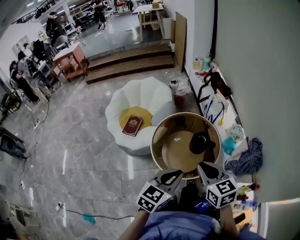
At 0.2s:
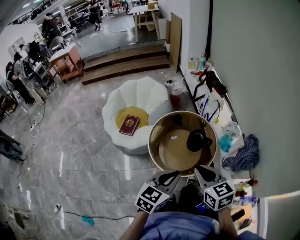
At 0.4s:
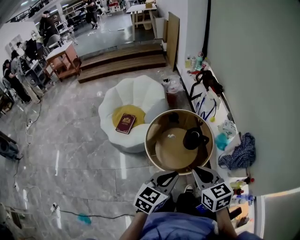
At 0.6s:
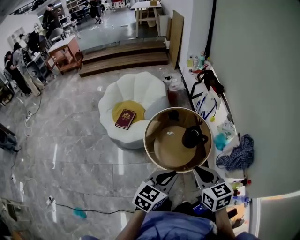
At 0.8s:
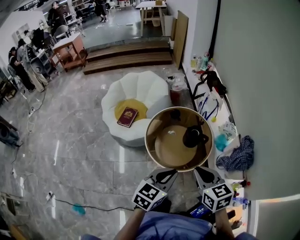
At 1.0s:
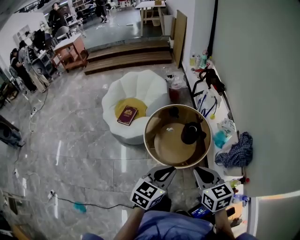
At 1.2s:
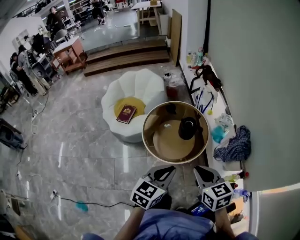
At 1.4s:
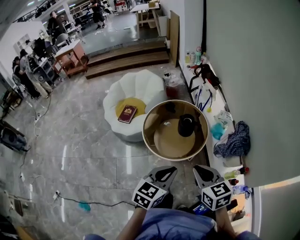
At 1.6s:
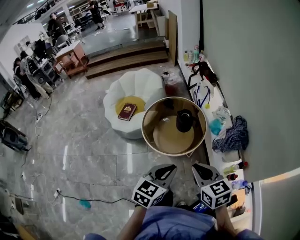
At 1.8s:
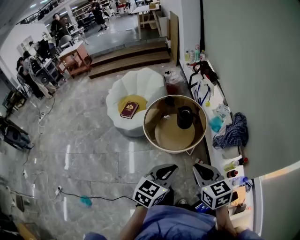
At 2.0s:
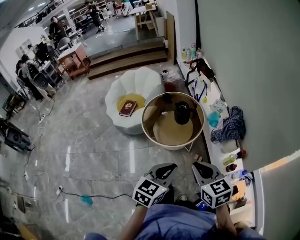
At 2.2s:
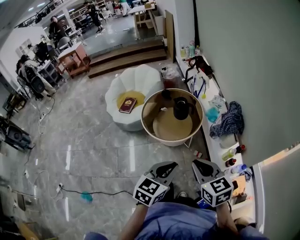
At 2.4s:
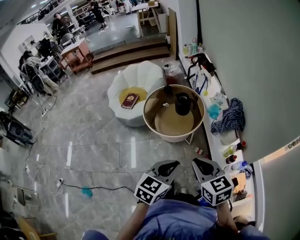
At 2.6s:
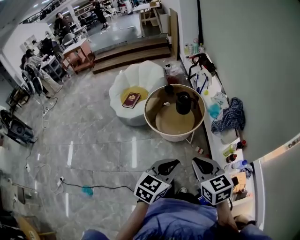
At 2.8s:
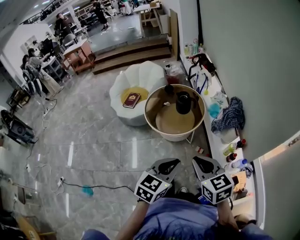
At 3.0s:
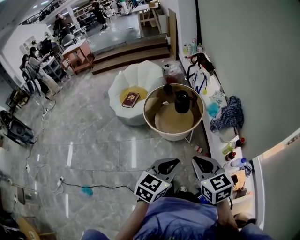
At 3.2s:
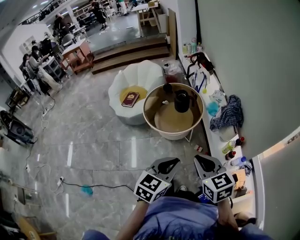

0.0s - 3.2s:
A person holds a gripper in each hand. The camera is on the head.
0.0s - 1.6s: Both grippers travel together backward and to the right, about 20 cm.
1.6s - 3.2s: Both grippers move backward, approximately 15 cm.

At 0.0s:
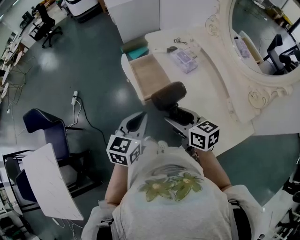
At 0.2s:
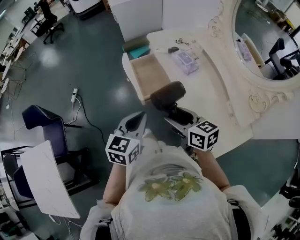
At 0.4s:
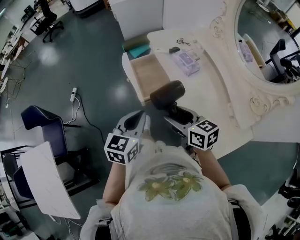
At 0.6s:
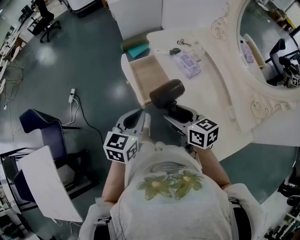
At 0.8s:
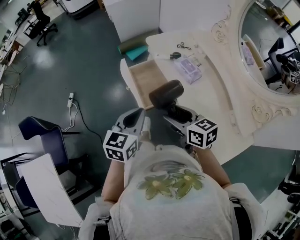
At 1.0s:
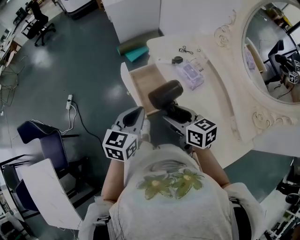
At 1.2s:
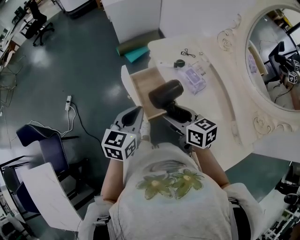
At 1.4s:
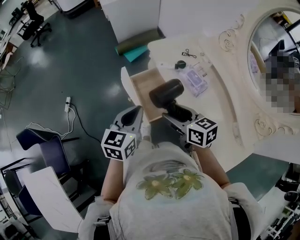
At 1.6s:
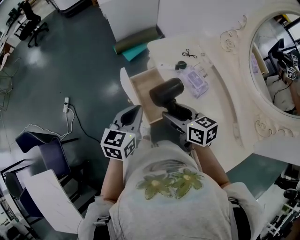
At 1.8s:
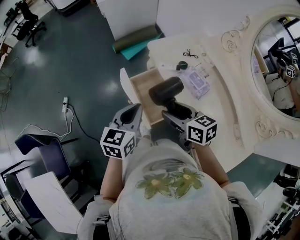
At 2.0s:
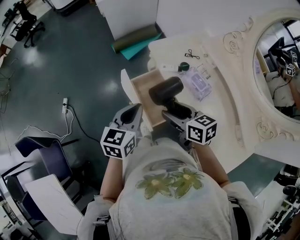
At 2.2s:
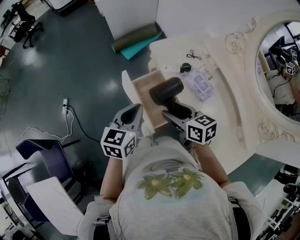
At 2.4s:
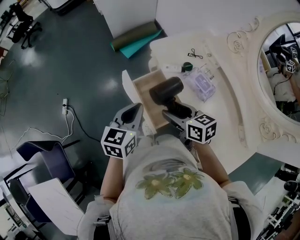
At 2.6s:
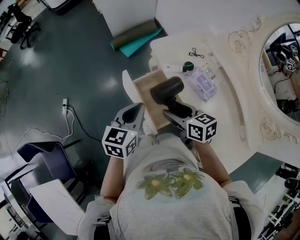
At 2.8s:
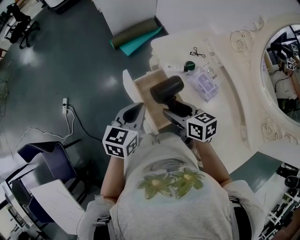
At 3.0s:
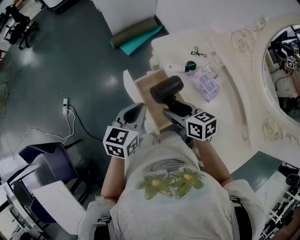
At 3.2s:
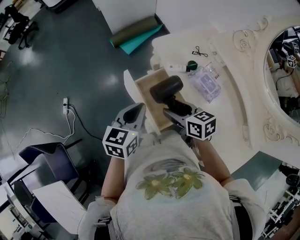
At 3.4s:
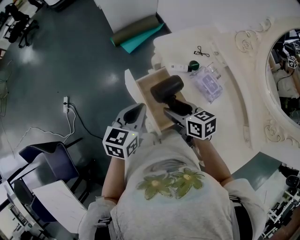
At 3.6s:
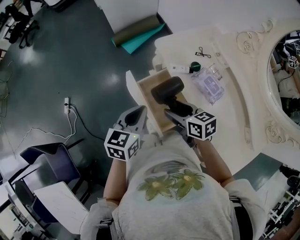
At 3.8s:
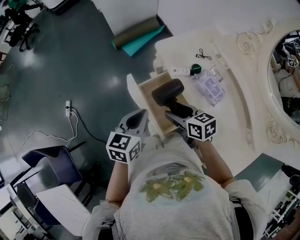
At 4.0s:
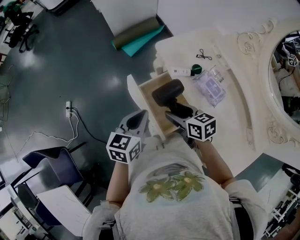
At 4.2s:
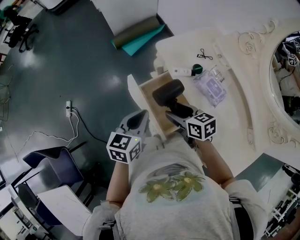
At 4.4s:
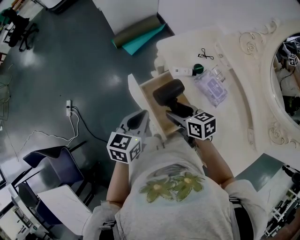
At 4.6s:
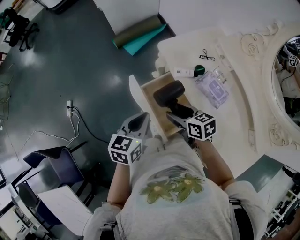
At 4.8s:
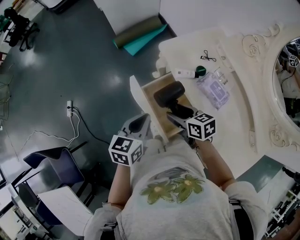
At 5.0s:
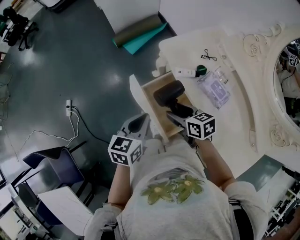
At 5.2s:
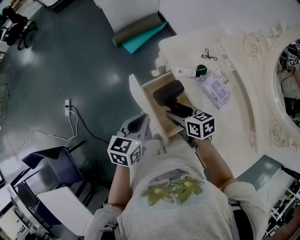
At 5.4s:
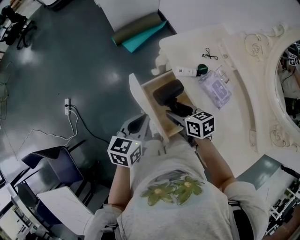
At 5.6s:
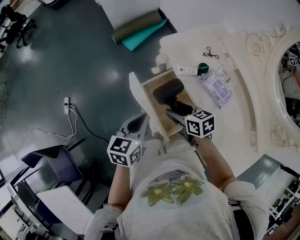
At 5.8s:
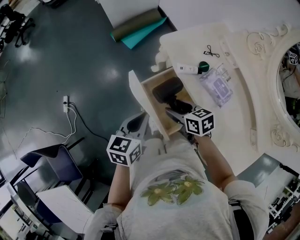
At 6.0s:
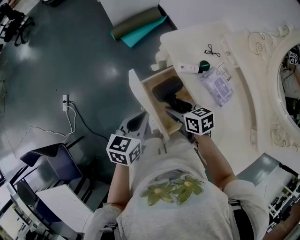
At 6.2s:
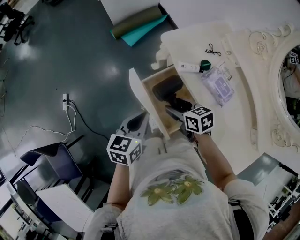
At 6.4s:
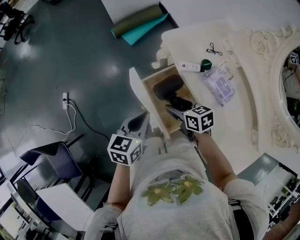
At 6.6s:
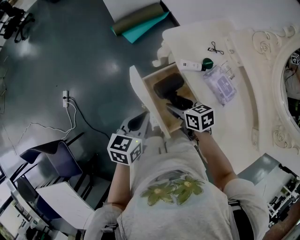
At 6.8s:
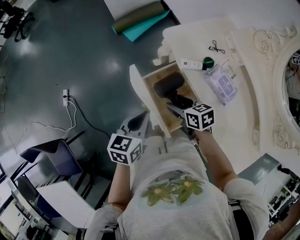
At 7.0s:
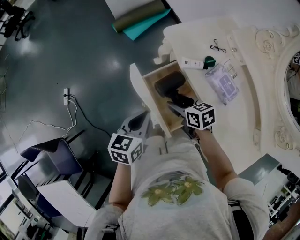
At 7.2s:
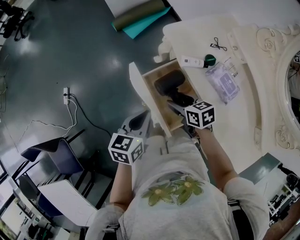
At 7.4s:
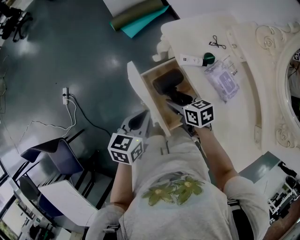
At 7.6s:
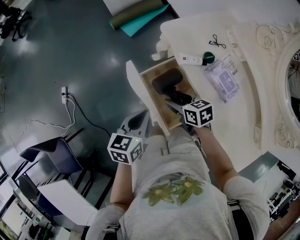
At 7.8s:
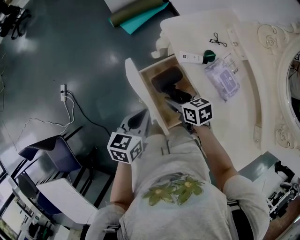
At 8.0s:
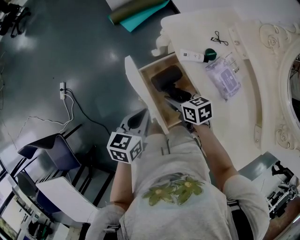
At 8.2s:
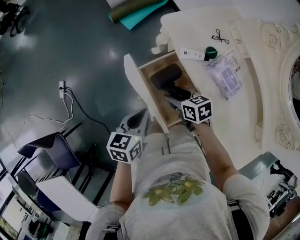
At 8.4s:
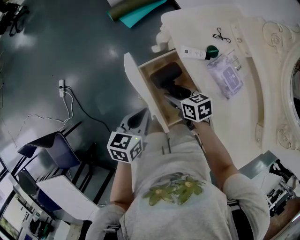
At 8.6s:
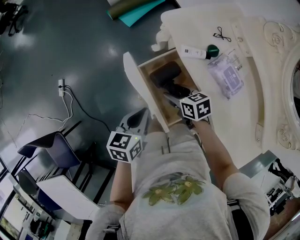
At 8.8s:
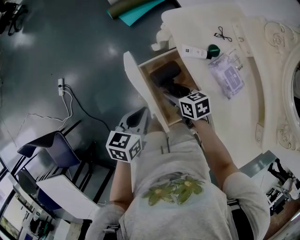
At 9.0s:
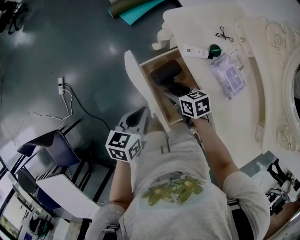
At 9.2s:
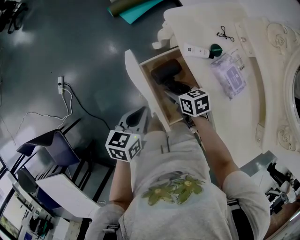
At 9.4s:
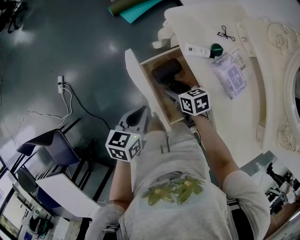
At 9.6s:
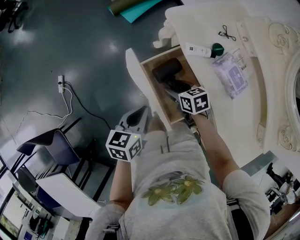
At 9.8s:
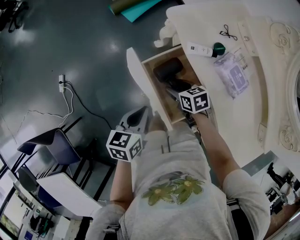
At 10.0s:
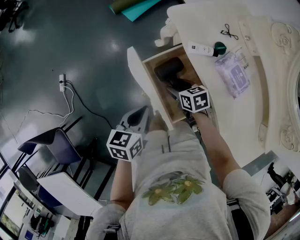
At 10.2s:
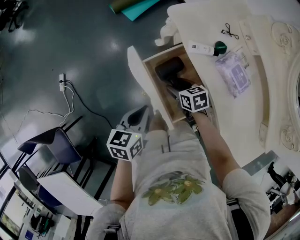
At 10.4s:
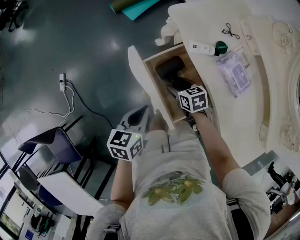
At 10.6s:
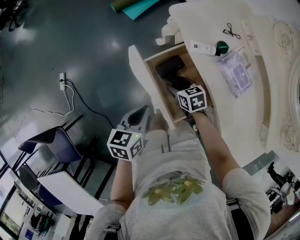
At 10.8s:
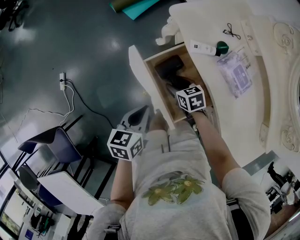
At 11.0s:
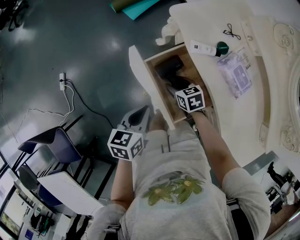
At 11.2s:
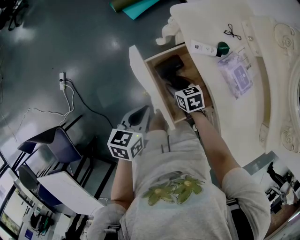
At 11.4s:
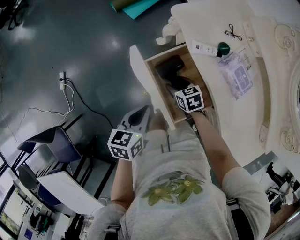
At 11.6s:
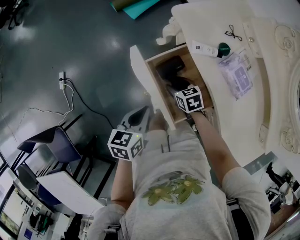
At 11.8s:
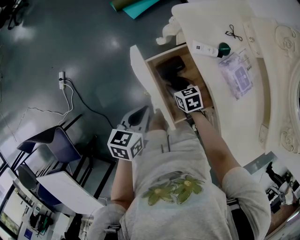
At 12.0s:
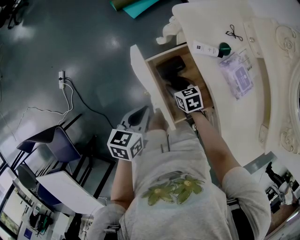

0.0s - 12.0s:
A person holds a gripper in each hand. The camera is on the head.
0.0s - 1.6s: Both grippers move forward, approximately 25 cm.
1.6s - 3.0s: The right gripper shifts about 10 cm forward and downward. The left gripper travels forward by about 10 cm.
3.0s - 4.4s: The right gripper ends up approximately 5 cm from where it was.
4.4s - 6.0s: The right gripper moves downward, approximately 5 cm.
6.0s - 7.6s: The grippers stay close to where they were, moving slightly.
7.6s - 9.0s: The right gripper shifts some 5 cm downward.
9.0s - 10.4s: The right gripper changes place by roughly 5 cm.
10.4s - 12.0s: The grippers move only a little.

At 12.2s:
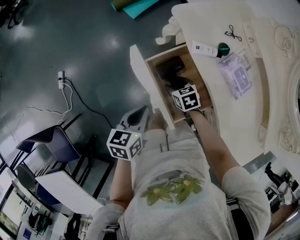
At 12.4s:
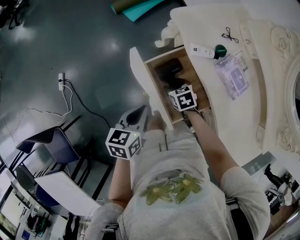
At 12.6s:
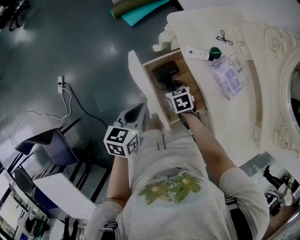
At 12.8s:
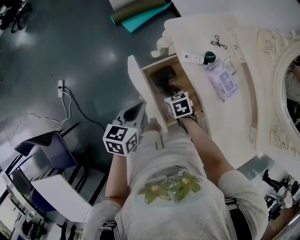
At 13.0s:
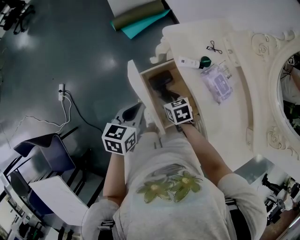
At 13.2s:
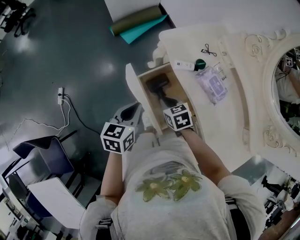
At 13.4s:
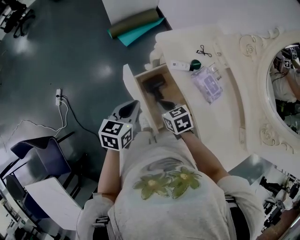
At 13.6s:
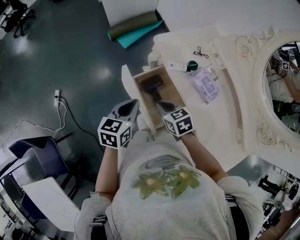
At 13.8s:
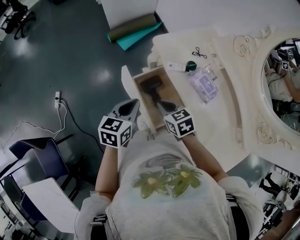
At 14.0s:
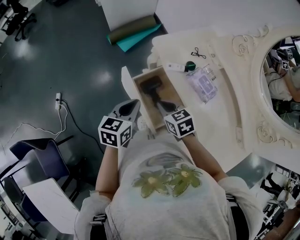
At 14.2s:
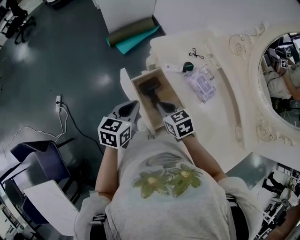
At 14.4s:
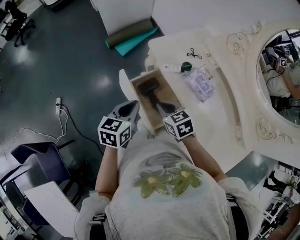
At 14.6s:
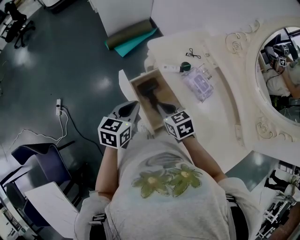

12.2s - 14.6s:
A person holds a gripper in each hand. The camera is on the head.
12.2s - 13.4s: The right gripper shifts approximately 15 cm upward, and closes, while the left gripper goes about 10 cm upward.
13.4s - 14.6s: The right gripper heads upward, covering about 5 cm.

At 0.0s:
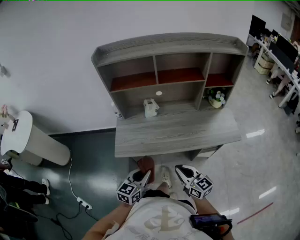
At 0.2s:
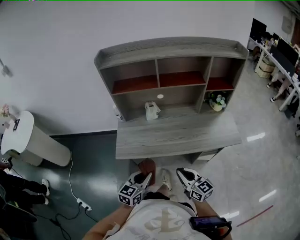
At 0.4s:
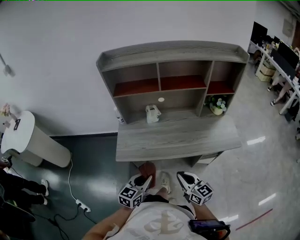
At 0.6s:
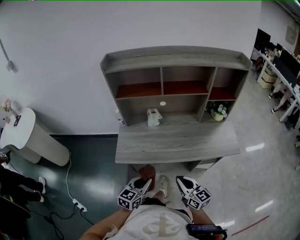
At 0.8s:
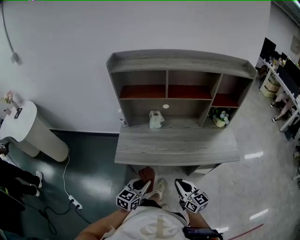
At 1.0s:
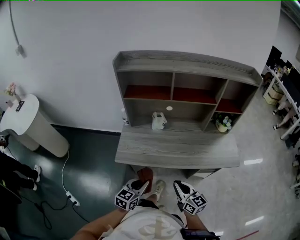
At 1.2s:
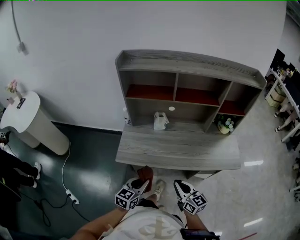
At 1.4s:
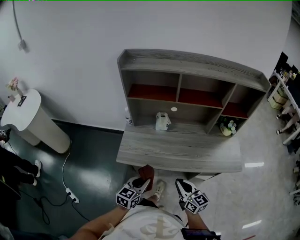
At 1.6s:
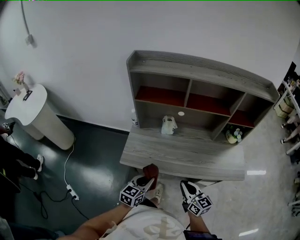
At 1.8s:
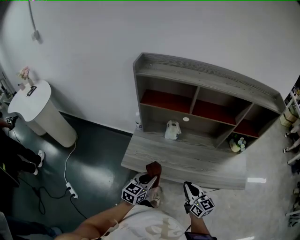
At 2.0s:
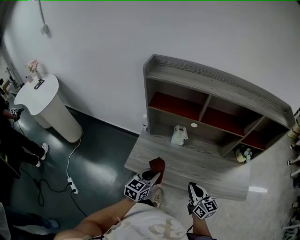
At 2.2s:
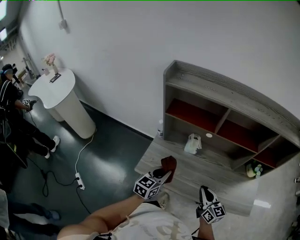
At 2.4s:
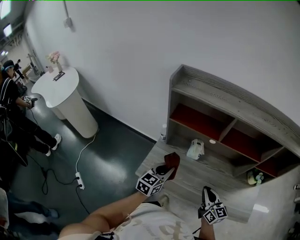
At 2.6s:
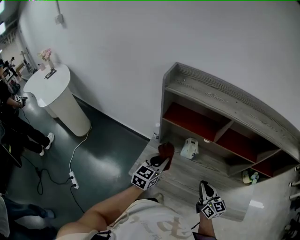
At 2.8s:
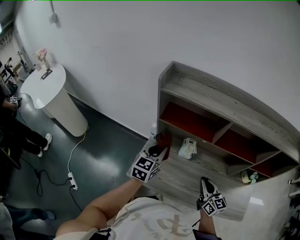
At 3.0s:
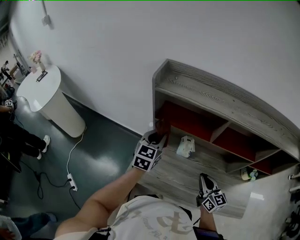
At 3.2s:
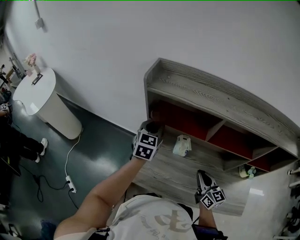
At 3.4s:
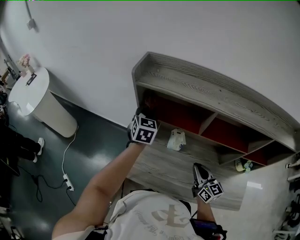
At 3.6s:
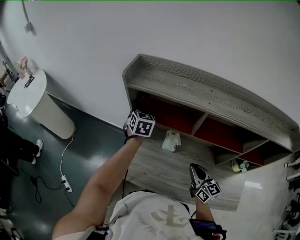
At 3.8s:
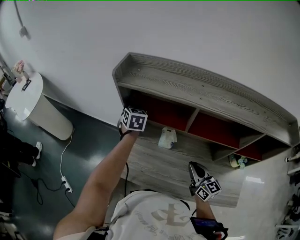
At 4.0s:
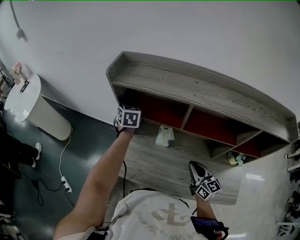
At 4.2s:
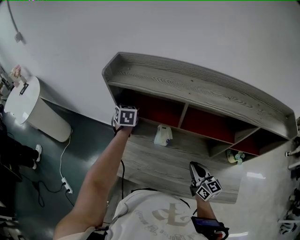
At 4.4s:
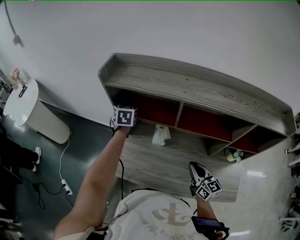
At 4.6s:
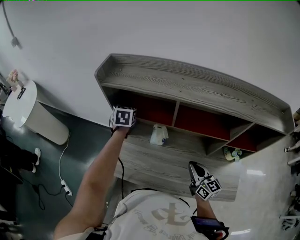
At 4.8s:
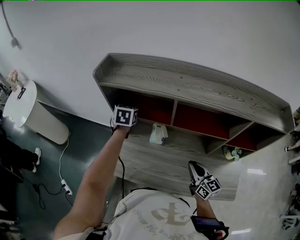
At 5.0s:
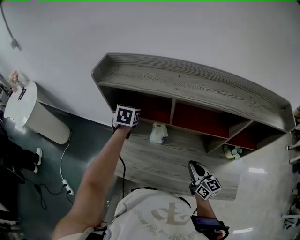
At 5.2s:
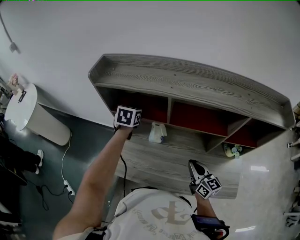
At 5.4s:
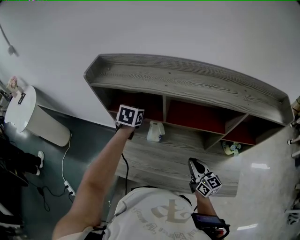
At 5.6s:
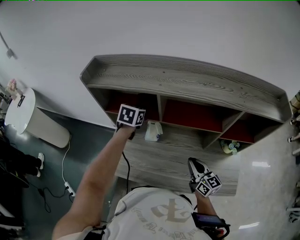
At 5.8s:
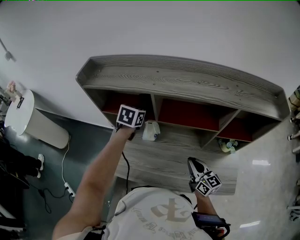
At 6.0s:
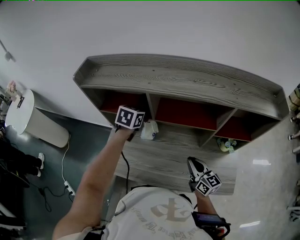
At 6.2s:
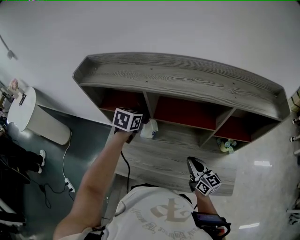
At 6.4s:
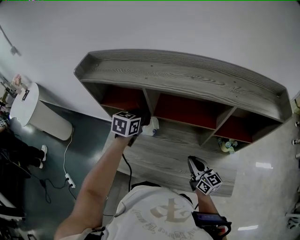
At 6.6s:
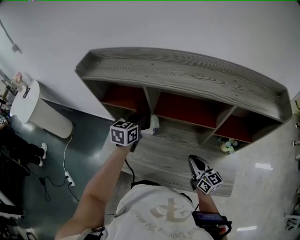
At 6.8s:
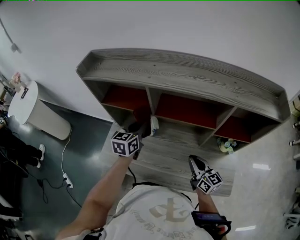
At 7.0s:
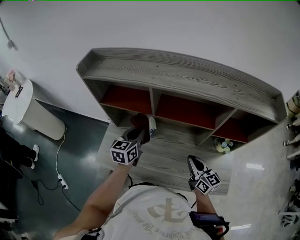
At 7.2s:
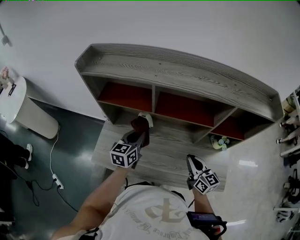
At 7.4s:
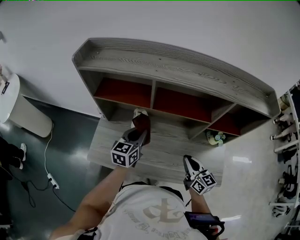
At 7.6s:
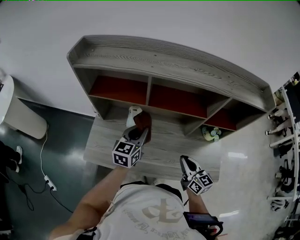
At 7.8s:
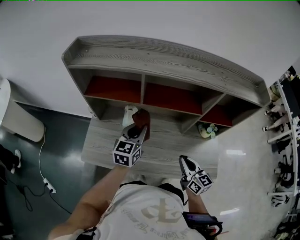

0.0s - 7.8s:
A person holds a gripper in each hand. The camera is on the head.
0.0s - 1.6s: The grippers both shift forward by about 5 cm.
1.6s - 3.2s: The left gripper travels forward by about 40 cm, and changes its angle by roughly 30 degrees. The right gripper goes some 25 cm forward.
3.2s - 4.6s: The right gripper travels to the right by about 10 cm. Meanwhile the left gripper shifts some 5 cm forward.
4.6s - 6.2s: The left gripper moves to the right and backward, roughly 20 cm, and rotates some 20 degrees, while the right gripper travels to the right by some 10 cm.
6.2s - 7.8s: The left gripper goes approximately 15 cm backward, and rotates some 20 degrees, while the right gripper shifts approximately 5 cm backward.
